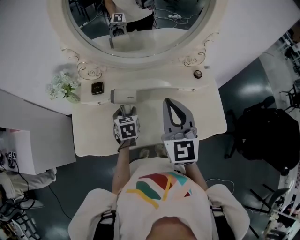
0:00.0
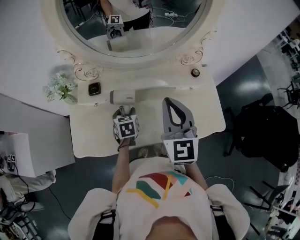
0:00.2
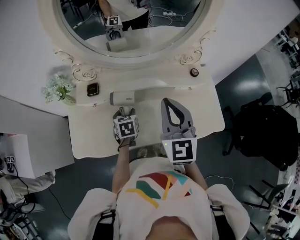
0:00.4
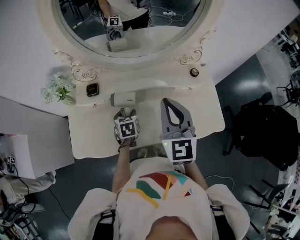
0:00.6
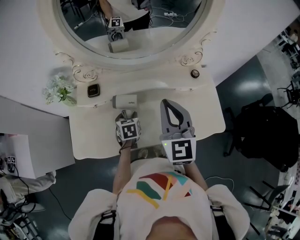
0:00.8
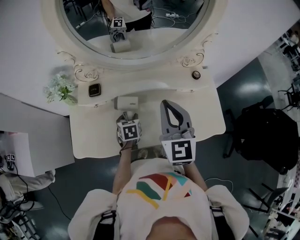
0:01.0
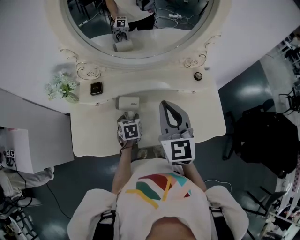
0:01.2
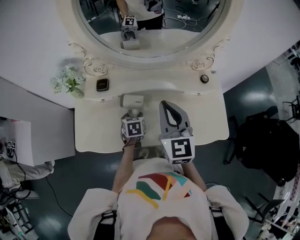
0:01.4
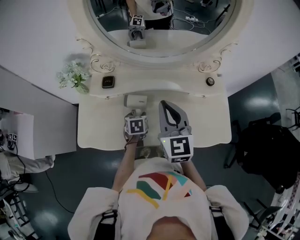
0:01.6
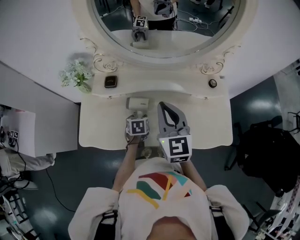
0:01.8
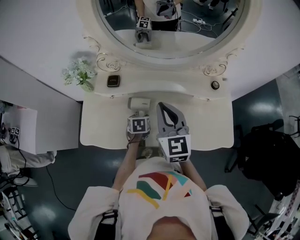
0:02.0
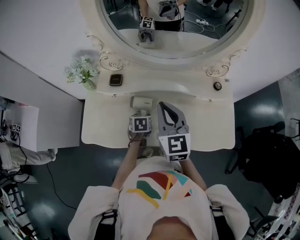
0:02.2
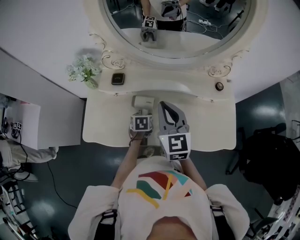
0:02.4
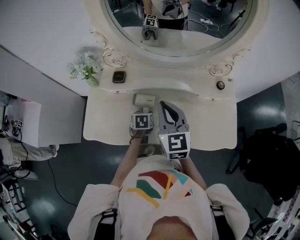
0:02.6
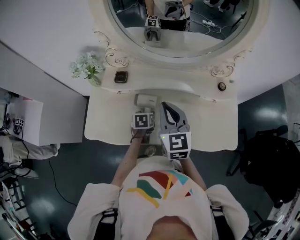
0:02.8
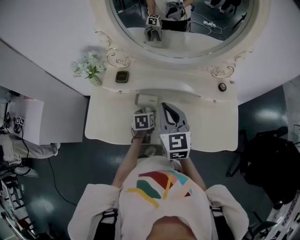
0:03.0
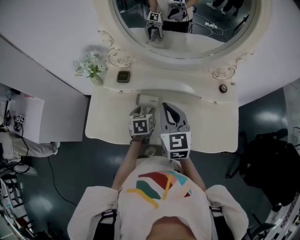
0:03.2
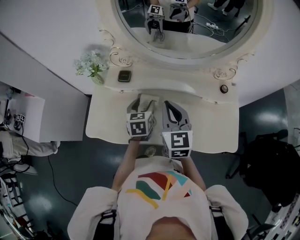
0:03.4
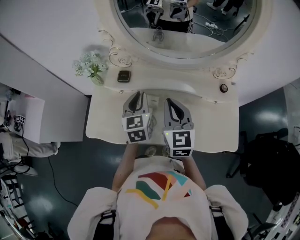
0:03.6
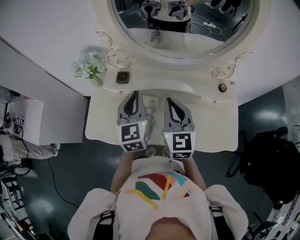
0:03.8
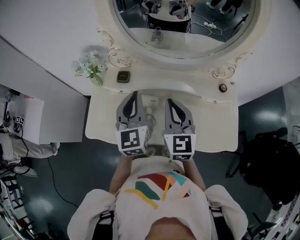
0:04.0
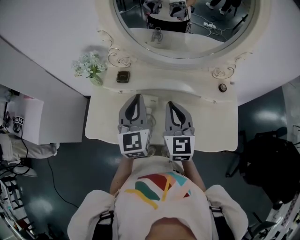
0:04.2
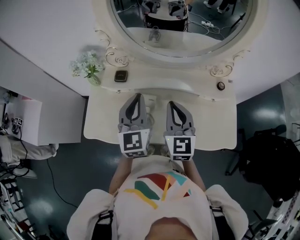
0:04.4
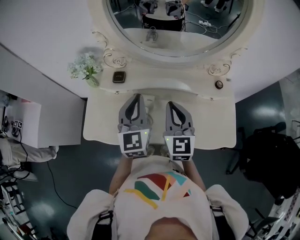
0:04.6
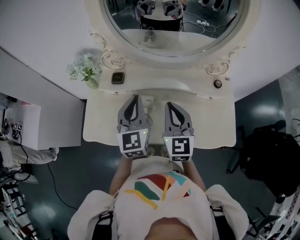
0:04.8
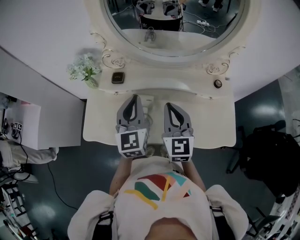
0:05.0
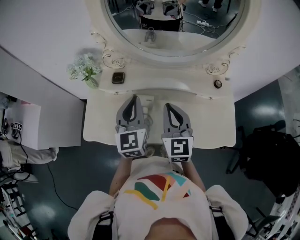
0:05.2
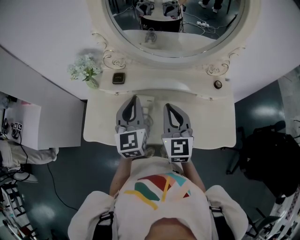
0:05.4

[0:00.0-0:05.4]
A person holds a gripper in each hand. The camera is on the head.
0:00.0 to 0:01.4: The left gripper goes approximately 5 cm downward.
0:01.4 to 0:02.8: The right gripper moves to the left, some 5 cm.
0:02.8 to 0:04.0: The left gripper is displaced upward by about 30 cm, tips its fingers upward by approximately 50 degrees, and closes its fingers.
0:04.0 to 0:05.4: The grippers move only a little.

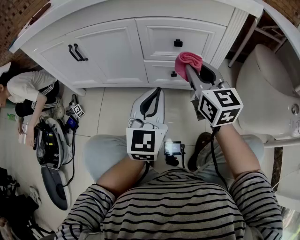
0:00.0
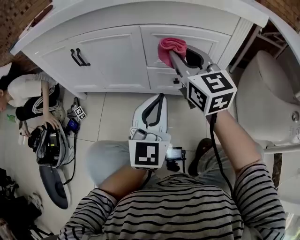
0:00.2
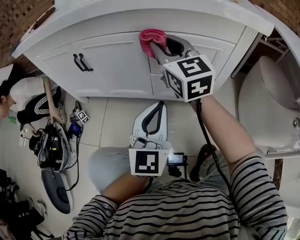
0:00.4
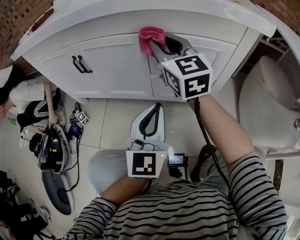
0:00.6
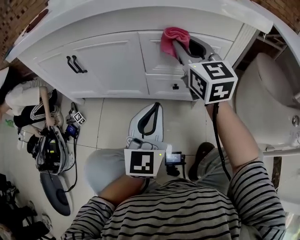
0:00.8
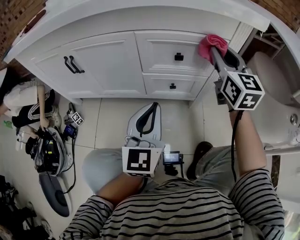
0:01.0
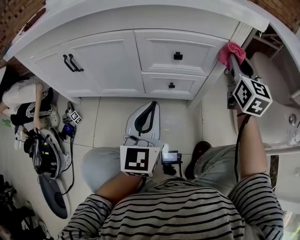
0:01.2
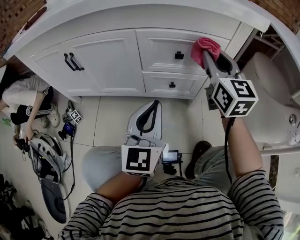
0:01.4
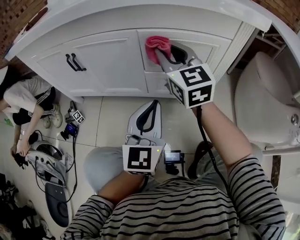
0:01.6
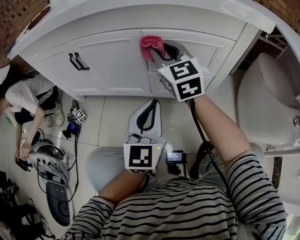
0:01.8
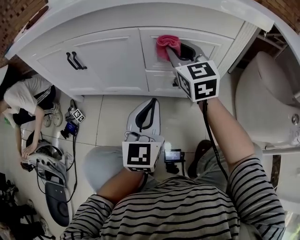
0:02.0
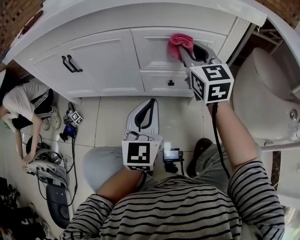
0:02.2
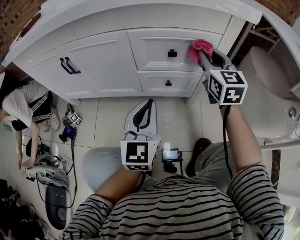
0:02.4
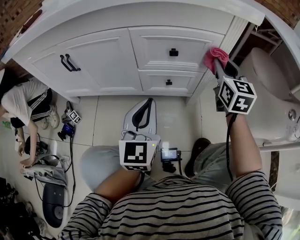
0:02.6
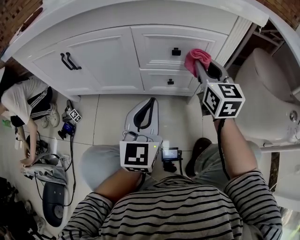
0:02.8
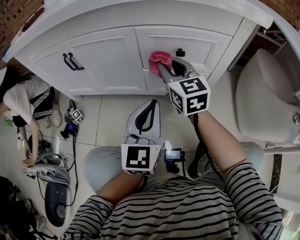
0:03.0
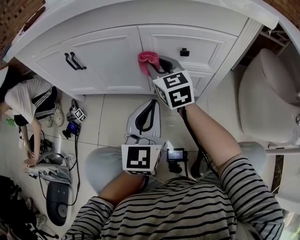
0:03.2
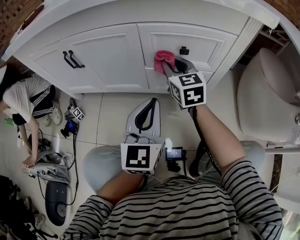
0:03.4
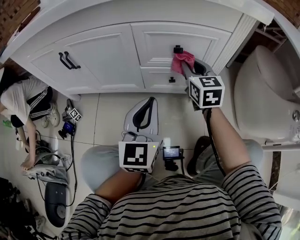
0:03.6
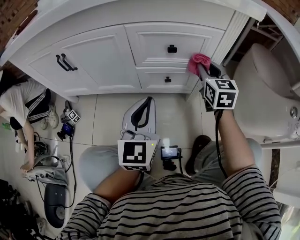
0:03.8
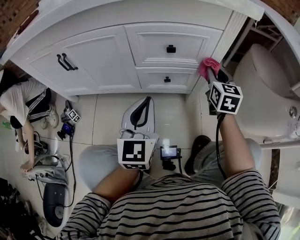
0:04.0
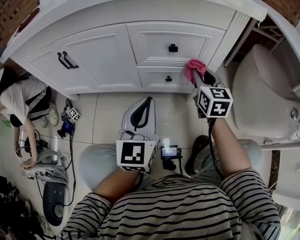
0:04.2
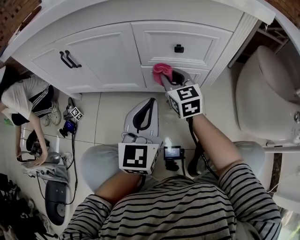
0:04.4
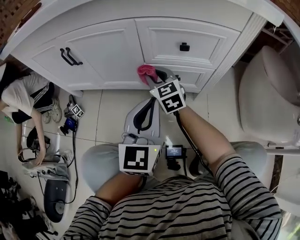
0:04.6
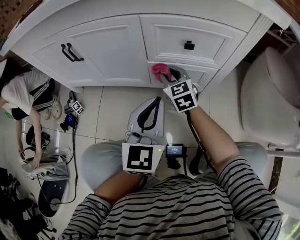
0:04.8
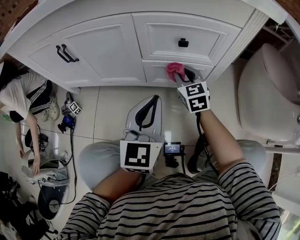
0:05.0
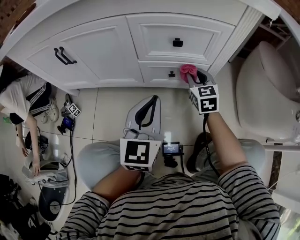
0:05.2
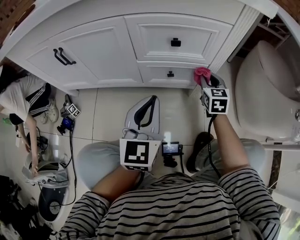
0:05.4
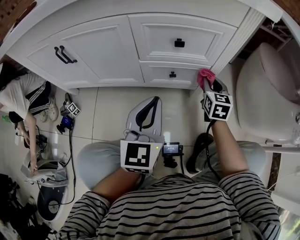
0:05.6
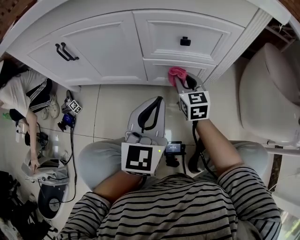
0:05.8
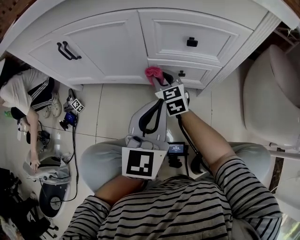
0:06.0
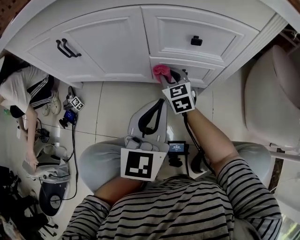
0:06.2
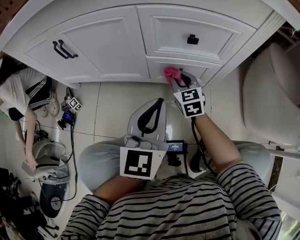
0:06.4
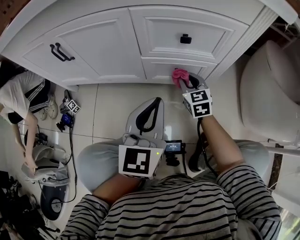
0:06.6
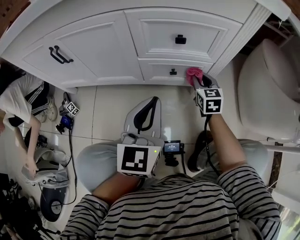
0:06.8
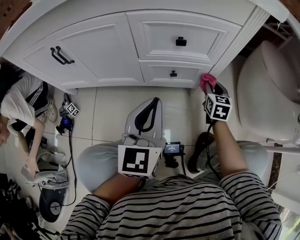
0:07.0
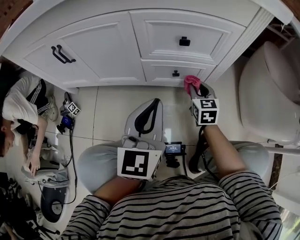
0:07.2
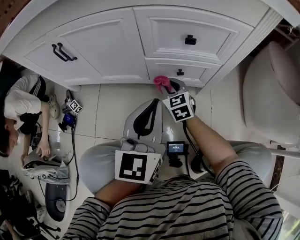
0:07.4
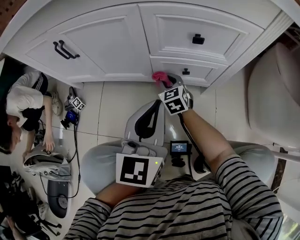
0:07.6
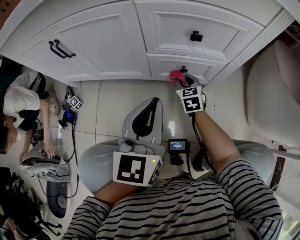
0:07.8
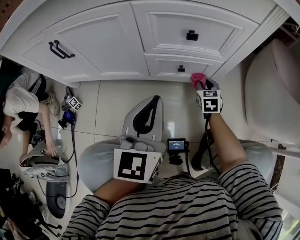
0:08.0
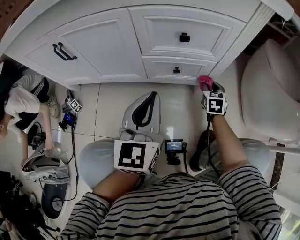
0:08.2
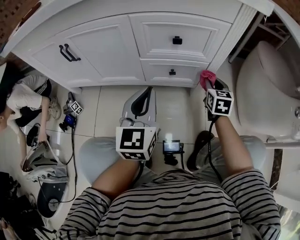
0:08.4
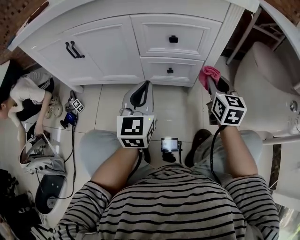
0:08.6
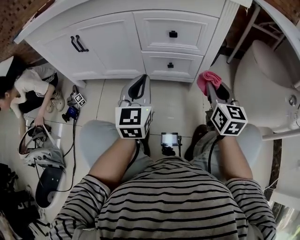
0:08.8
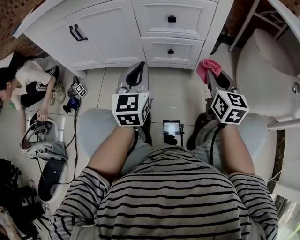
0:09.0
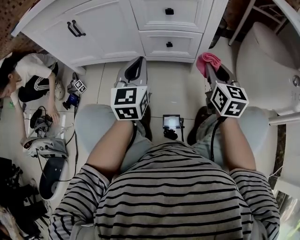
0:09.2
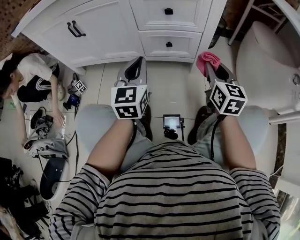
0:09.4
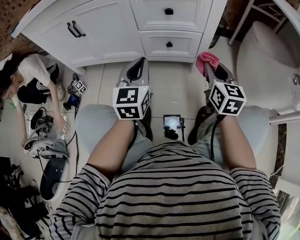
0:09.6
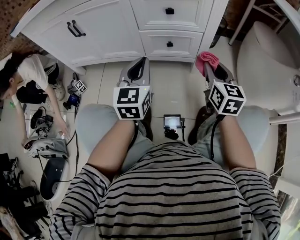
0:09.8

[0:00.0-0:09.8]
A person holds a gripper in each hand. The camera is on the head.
0:00.0 to 0:01.4: The right gripper moves left and right over some 25 cm, changing direction 2 times.
0:01.4 to 0:02.8: The right gripper moves left and right over about 25 cm, changing direction 2 times.
0:02.8 to 0:04.2: The right gripper goes left and right, about 25 cm each way, reversing 2 times.
0:04.2 to 0:05.6: The right gripper is displaced downward by roughly 10 cm, and moves some 20 cm to the left and comes back.
0:05.6 to 0:07.0: The right gripper goes roughly 5 cm downward, and moves roughly 25 cm to the left and comes back.
0:07.0 to 0:08.4: The right gripper travels to the left and back again, roughly 25 cm each way.
0:08.4 to 0:09.8: The right gripper goes some 15 cm backward and upward.

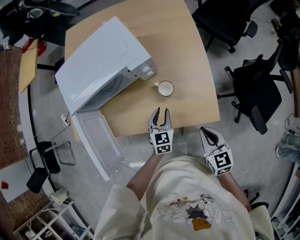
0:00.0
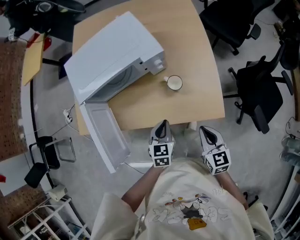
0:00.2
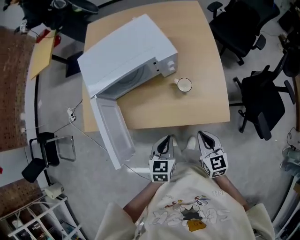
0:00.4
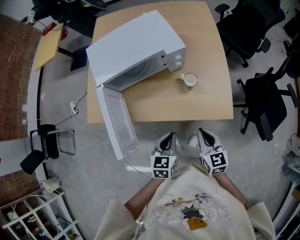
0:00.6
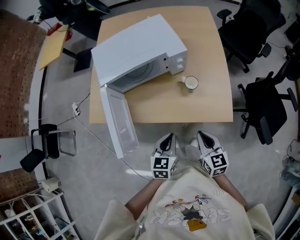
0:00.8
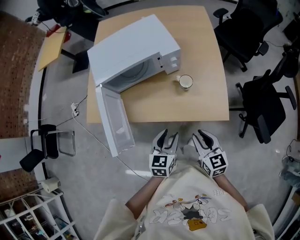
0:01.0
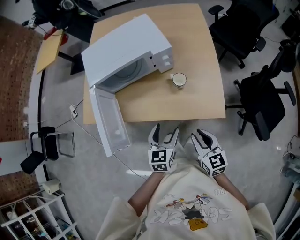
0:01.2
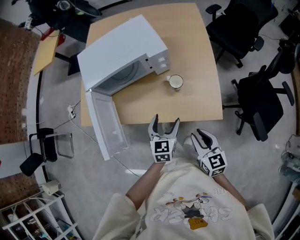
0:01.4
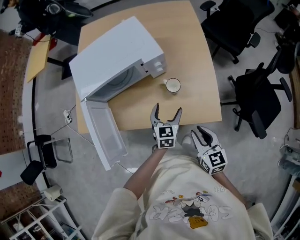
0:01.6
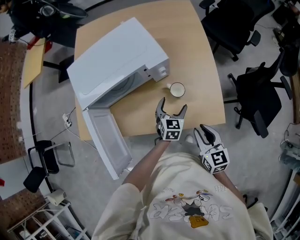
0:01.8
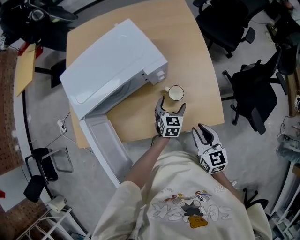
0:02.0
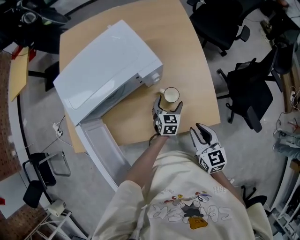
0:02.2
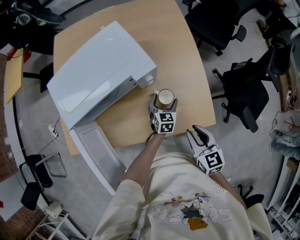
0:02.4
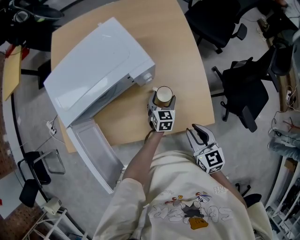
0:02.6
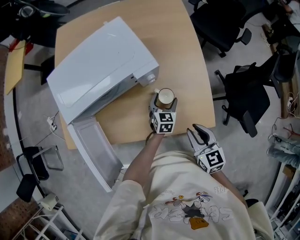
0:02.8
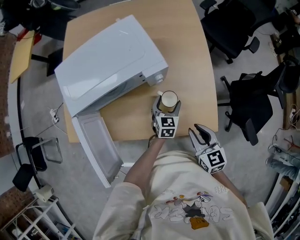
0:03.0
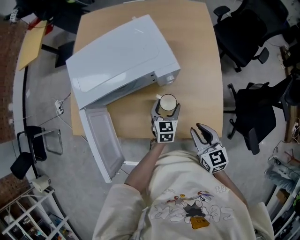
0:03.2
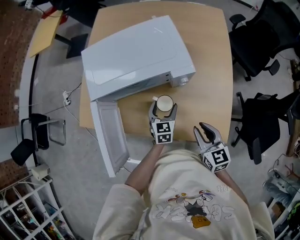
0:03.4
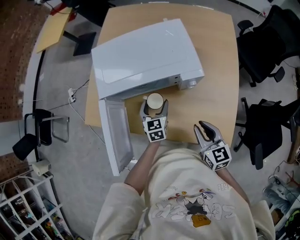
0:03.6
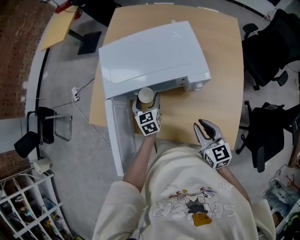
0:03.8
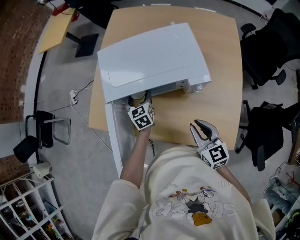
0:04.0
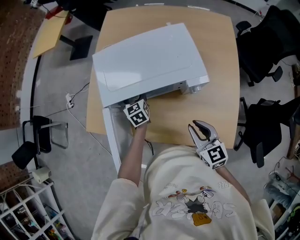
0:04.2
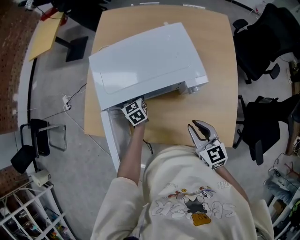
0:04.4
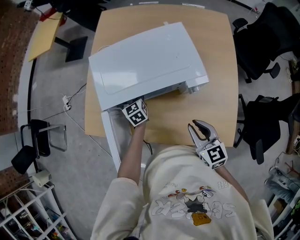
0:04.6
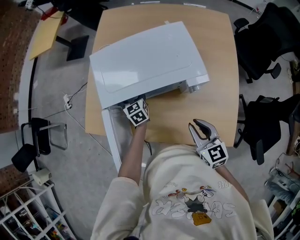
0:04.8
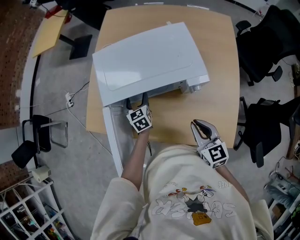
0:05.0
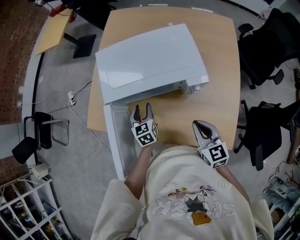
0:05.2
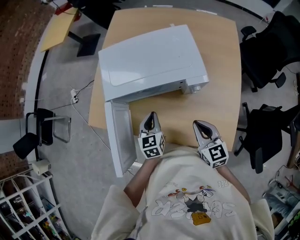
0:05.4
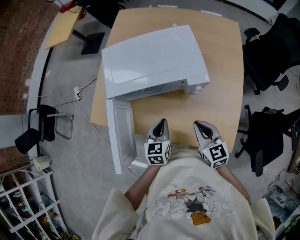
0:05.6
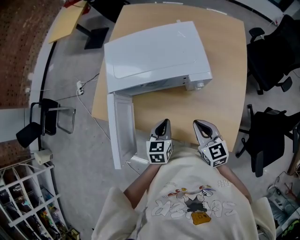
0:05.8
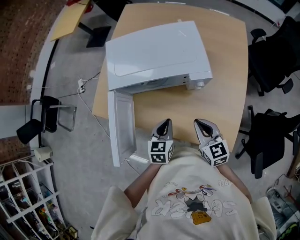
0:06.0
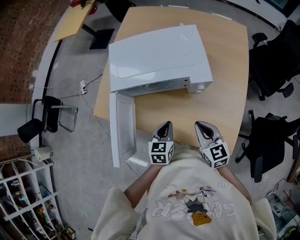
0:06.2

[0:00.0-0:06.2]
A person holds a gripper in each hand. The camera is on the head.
0:00.0 to 0:01.6: The left gripper reaches about 15 cm backward, then returns, and opens its fingers; the right gripper is displaced to the left by roughly 5 cm, and opens up.
0:01.6 to 0:03.2: Both grippers travel together forward, roughly 10 cm.
0:03.2 to 0:04.6: The left gripper is displaced to the left and forward by some 35 cm, and rotates approximately 30 degrees. The right gripper heads forward and to the left, covering roughly 15 cm.
0:04.6 to 0:06.2: The left gripper goes approximately 25 cm backward, changes its angle by approximately 20 degrees, and closes.

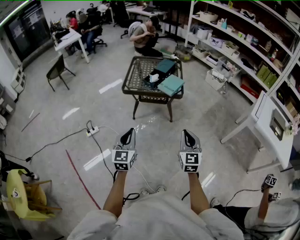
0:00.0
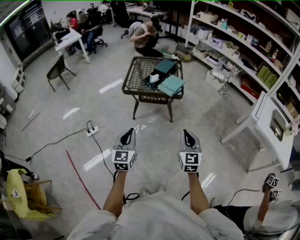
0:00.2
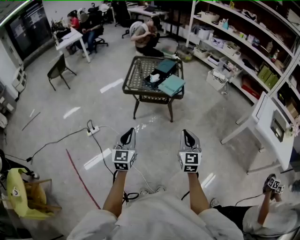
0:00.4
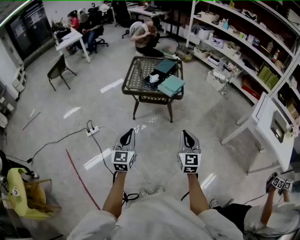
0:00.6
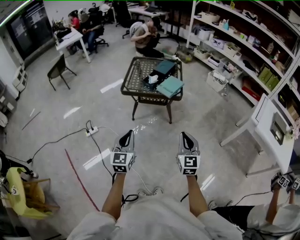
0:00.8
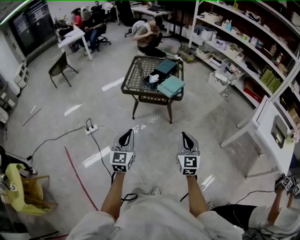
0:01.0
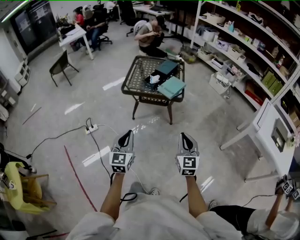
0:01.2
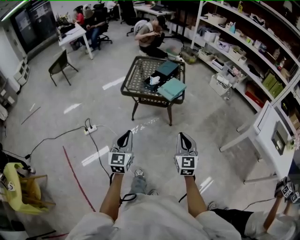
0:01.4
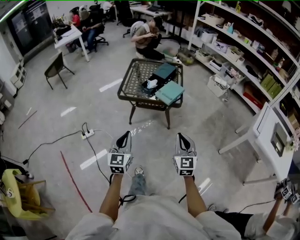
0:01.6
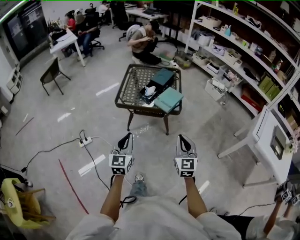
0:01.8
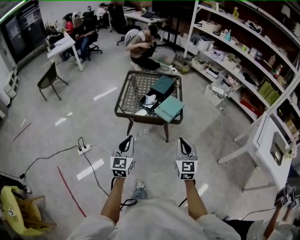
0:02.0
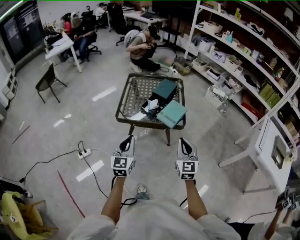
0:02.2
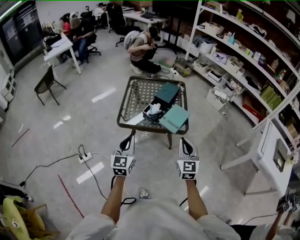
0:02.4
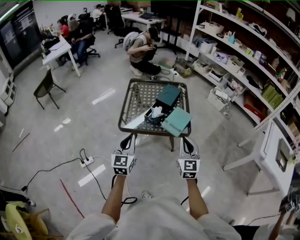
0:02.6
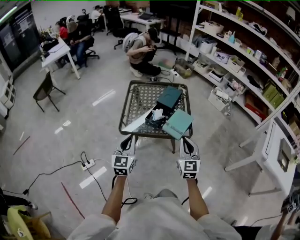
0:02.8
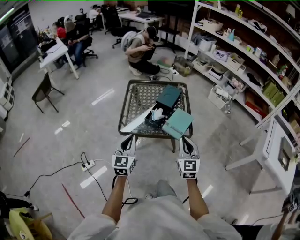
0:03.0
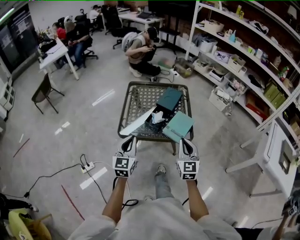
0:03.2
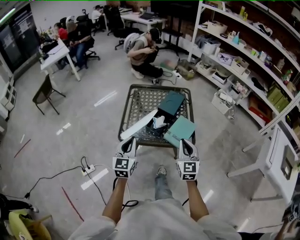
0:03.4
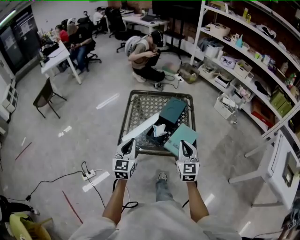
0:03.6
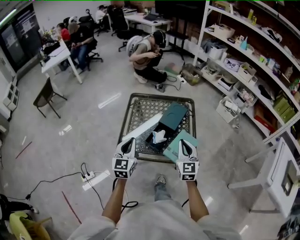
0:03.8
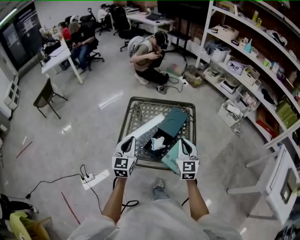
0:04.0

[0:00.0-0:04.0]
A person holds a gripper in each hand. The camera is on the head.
0:00.0 to 0:01.4: The left gripper ends up about 5 cm from where it was. The right gripper shifts roughly 5 cm forward.
0:01.4 to 0:02.6: The two grippers go about 30 cm forward.
0:02.6 to 0:04.0: The grippers both shift forward by roughly 30 cm.
